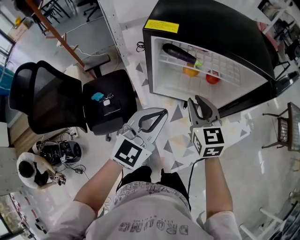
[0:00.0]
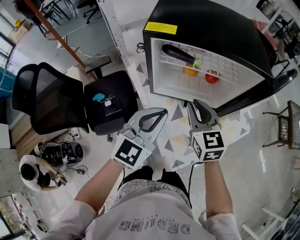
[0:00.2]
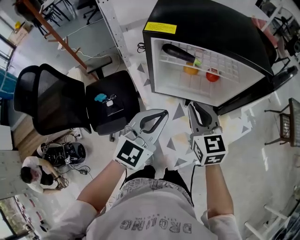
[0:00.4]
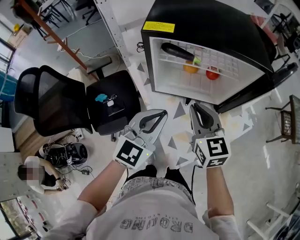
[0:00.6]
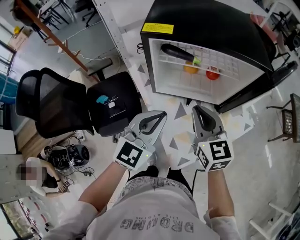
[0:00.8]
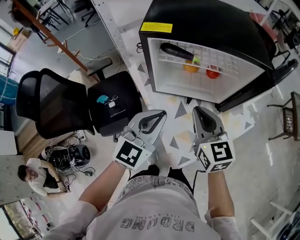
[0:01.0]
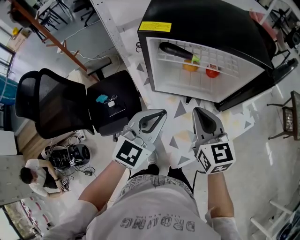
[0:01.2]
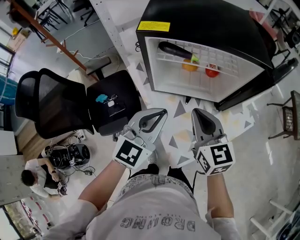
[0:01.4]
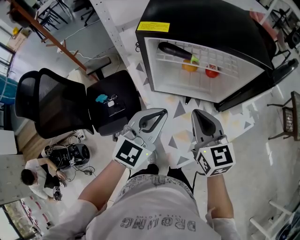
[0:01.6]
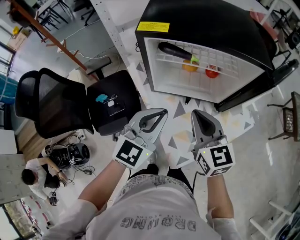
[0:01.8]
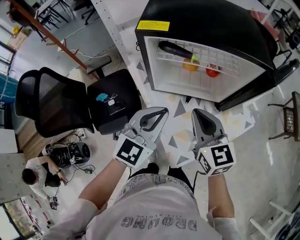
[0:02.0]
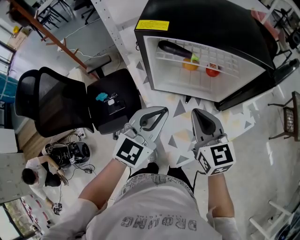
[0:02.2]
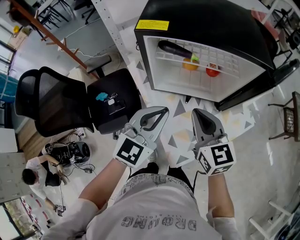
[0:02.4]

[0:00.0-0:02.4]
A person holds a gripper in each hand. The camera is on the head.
0:00.0 to 0:01.2: The right gripper heads backward, covering approximately 5 cm.
0:01.2 to 0:02.4: The two grippers keep their place.

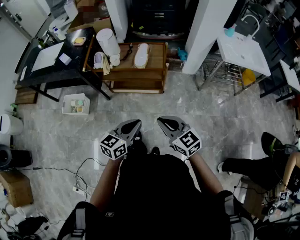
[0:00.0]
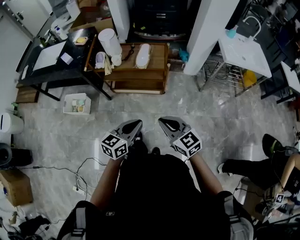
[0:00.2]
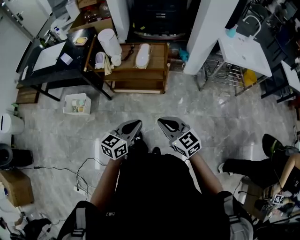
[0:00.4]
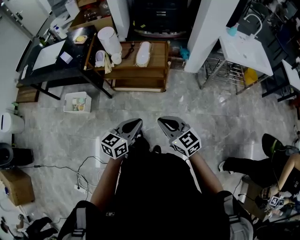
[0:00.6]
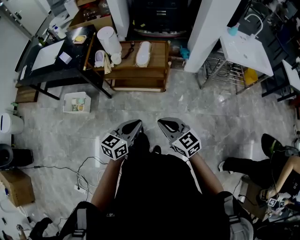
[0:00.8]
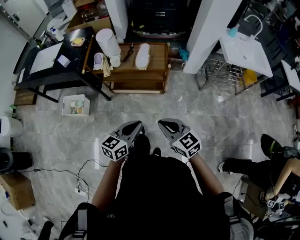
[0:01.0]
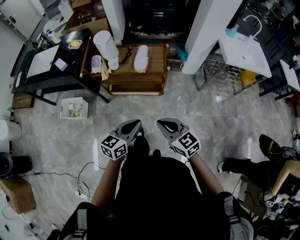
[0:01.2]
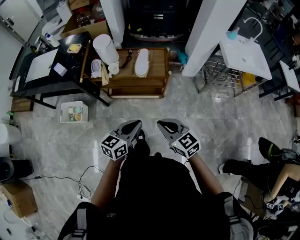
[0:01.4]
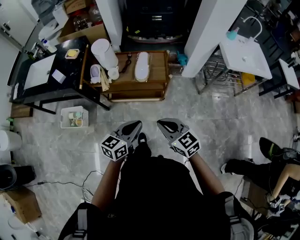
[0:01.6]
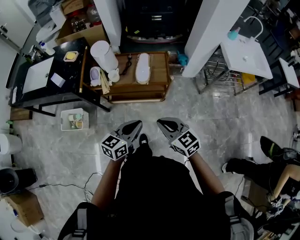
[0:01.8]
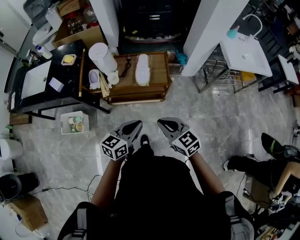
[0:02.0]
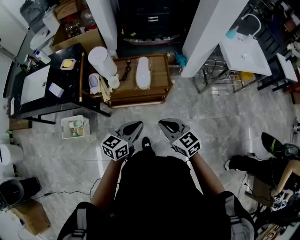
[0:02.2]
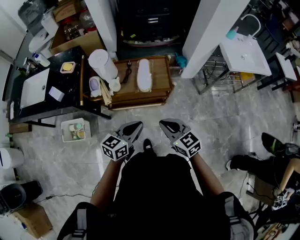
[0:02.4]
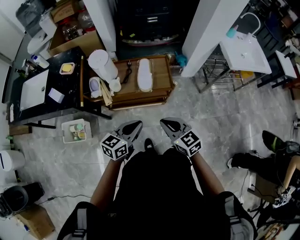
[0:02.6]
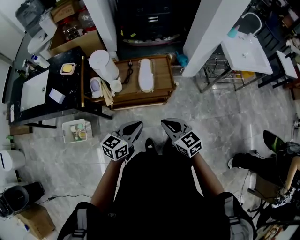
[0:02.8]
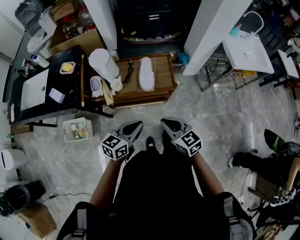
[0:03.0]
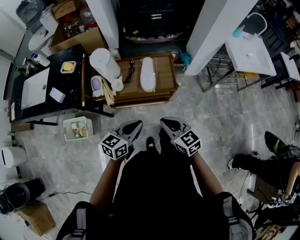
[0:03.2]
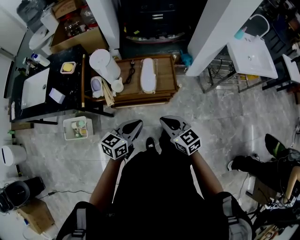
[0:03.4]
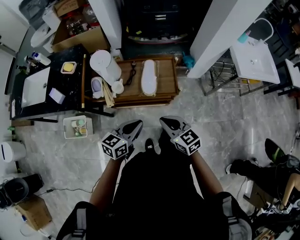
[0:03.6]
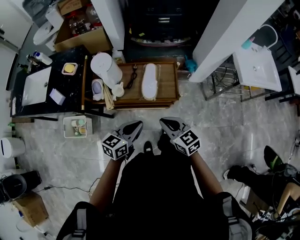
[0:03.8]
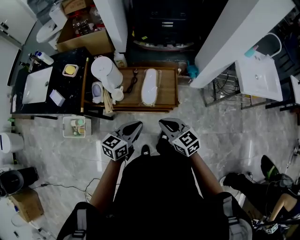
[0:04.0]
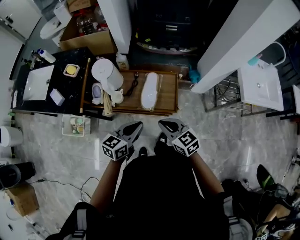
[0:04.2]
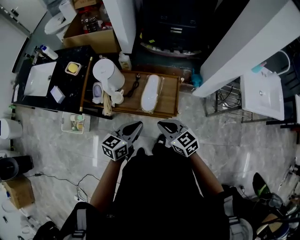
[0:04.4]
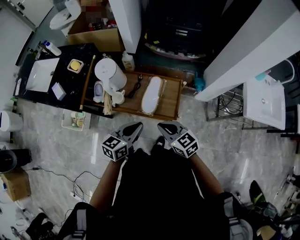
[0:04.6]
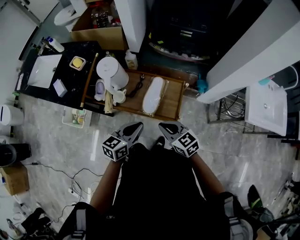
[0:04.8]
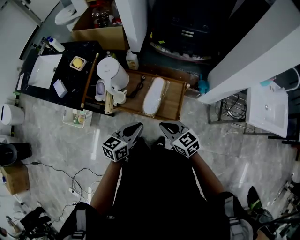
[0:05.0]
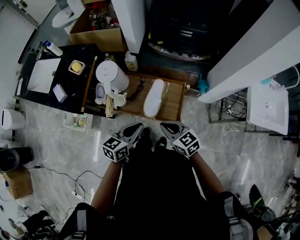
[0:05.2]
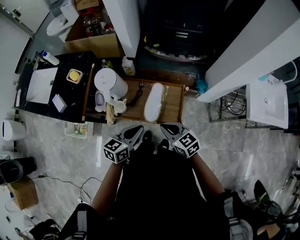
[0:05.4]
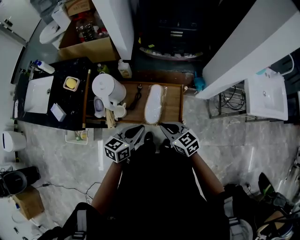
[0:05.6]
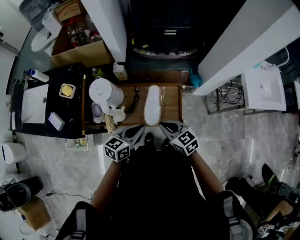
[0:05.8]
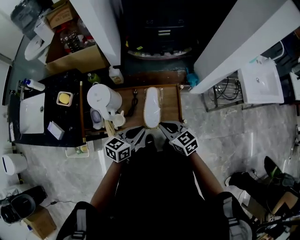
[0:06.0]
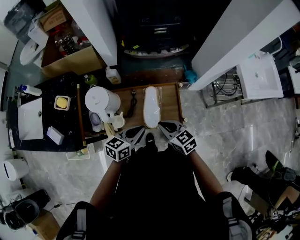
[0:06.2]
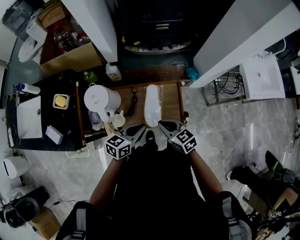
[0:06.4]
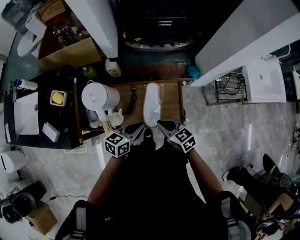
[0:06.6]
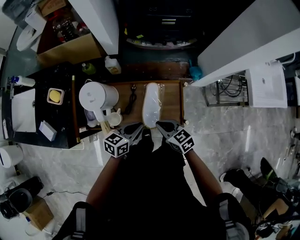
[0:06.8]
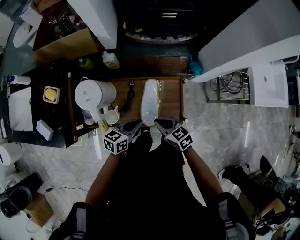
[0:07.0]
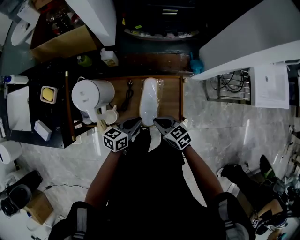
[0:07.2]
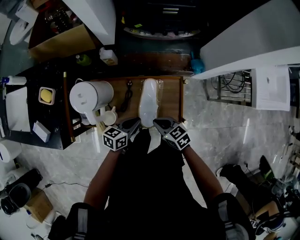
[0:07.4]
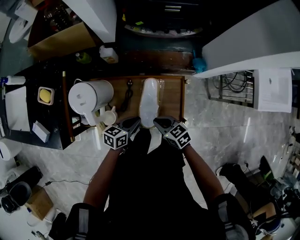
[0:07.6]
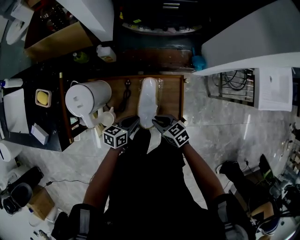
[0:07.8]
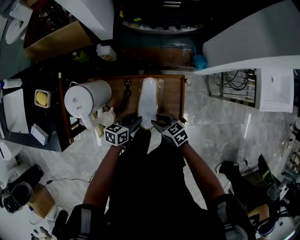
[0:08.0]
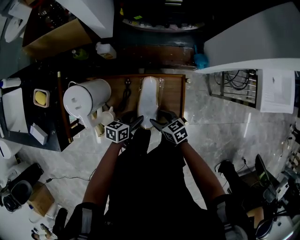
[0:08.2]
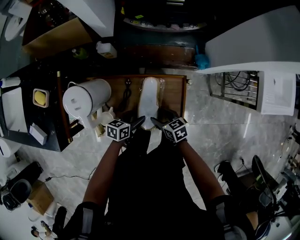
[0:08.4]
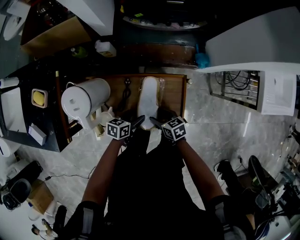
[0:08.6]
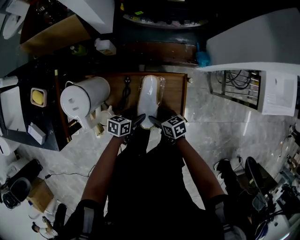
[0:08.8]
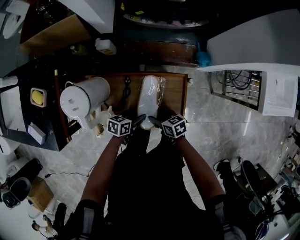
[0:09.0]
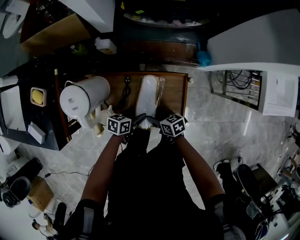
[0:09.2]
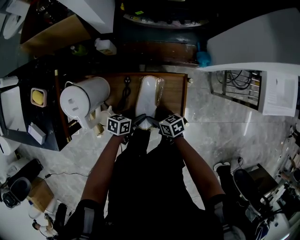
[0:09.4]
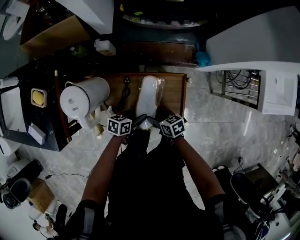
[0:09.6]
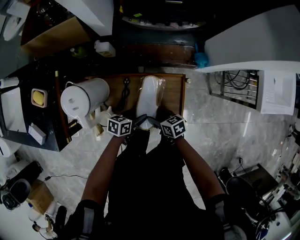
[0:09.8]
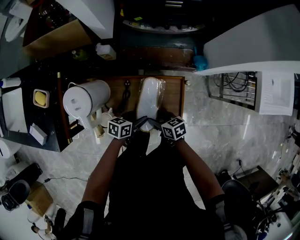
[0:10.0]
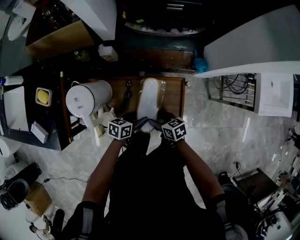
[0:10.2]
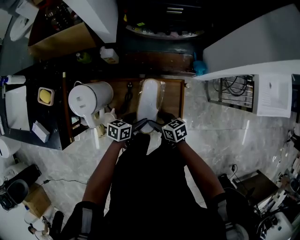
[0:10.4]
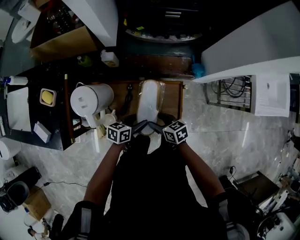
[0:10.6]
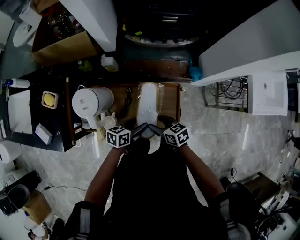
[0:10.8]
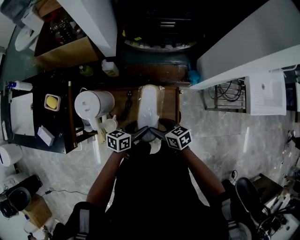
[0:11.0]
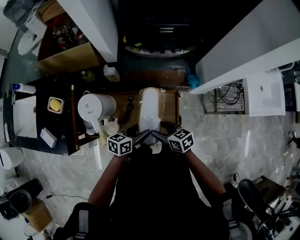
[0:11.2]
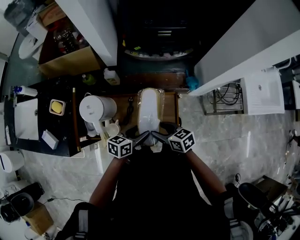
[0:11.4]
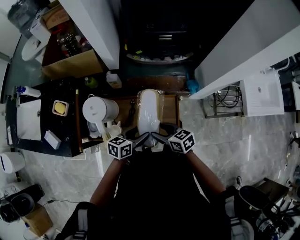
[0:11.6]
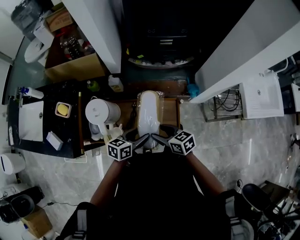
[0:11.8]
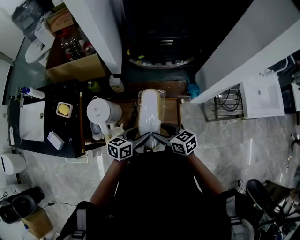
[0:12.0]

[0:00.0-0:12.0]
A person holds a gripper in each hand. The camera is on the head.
0:00.0 to 0:01.6: The two grippers go approximately 15 cm forward.
0:01.6 to 0:03.0: The two grippers go approximately 10 cm forward and to the left.
0:03.0 to 0:04.4: Both grippers move forward, roughly 15 cm.
0:04.4 to 0:06.0: The two grippers go about 10 cm forward.
0:06.0 to 0:07.6: The left gripper shifts roughly 15 cm downward and forward, while the right gripper goes roughly 15 cm downward.
0:07.6 to 0:09.0: Both grippers travel together downward, some 10 cm. The right gripper opens its fingers. Meanwhile the left gripper opens up.
0:09.0 to 0:10.4: The grippers both shift upward by approximately 5 cm.
0:10.4 to 0:12.0: The grippers both shift upward by roughly 15 cm.

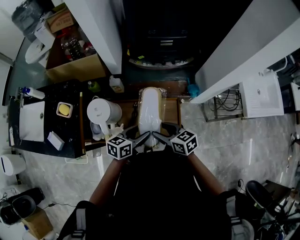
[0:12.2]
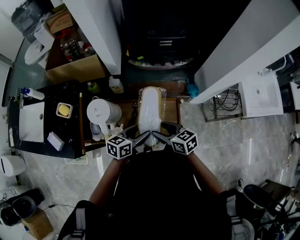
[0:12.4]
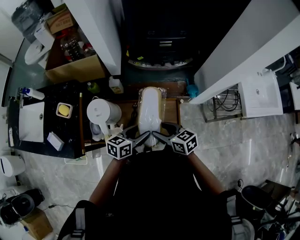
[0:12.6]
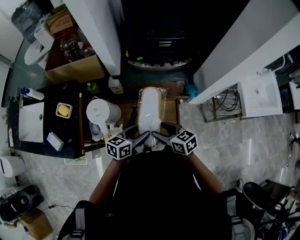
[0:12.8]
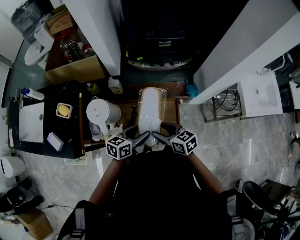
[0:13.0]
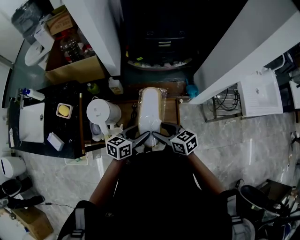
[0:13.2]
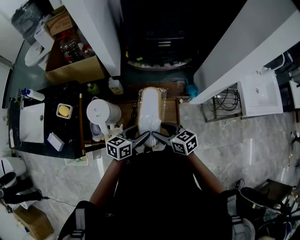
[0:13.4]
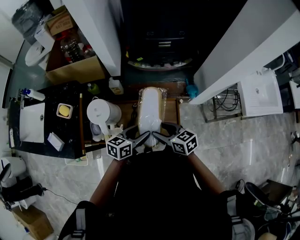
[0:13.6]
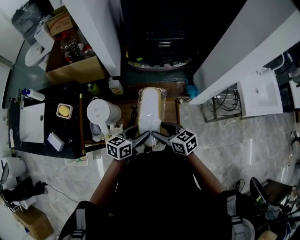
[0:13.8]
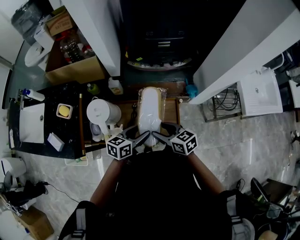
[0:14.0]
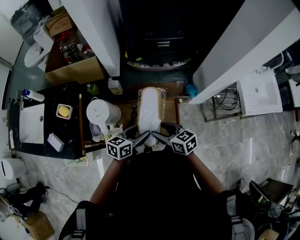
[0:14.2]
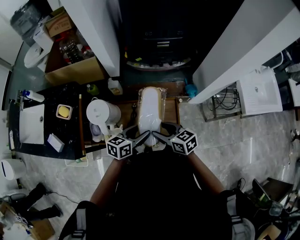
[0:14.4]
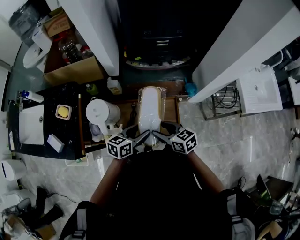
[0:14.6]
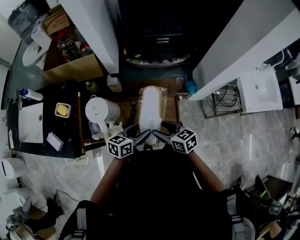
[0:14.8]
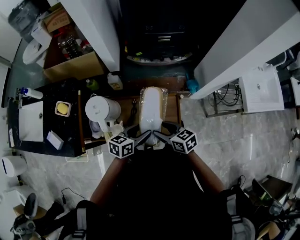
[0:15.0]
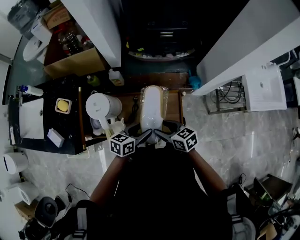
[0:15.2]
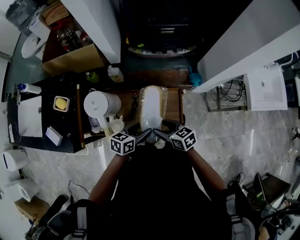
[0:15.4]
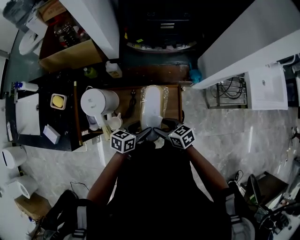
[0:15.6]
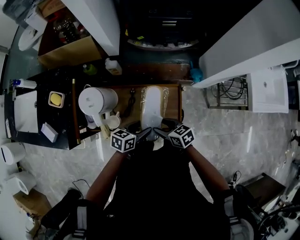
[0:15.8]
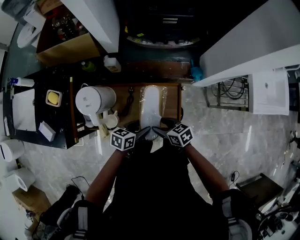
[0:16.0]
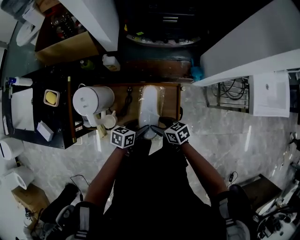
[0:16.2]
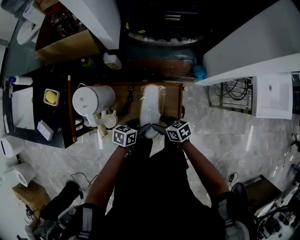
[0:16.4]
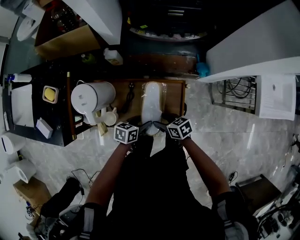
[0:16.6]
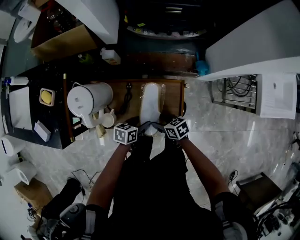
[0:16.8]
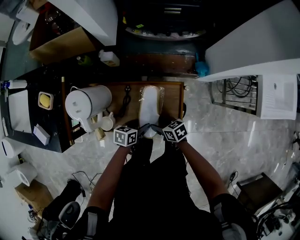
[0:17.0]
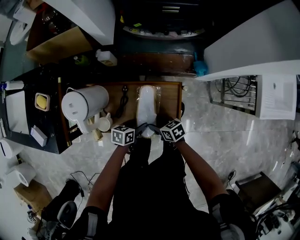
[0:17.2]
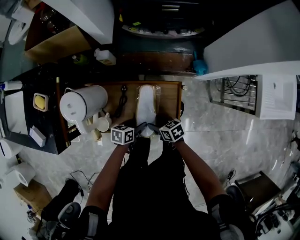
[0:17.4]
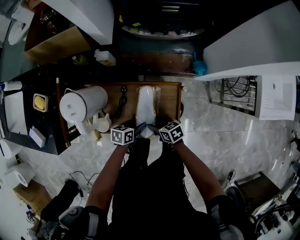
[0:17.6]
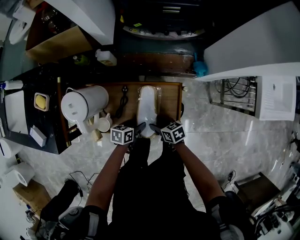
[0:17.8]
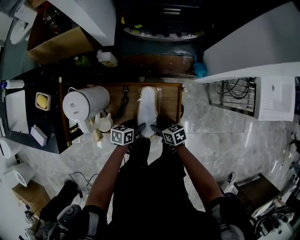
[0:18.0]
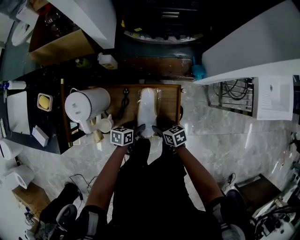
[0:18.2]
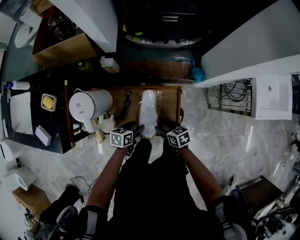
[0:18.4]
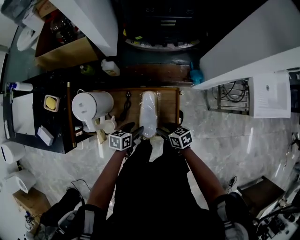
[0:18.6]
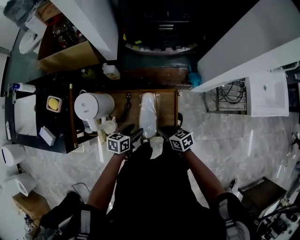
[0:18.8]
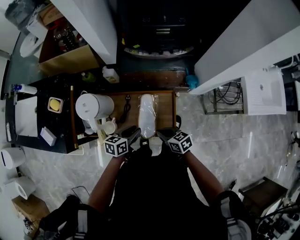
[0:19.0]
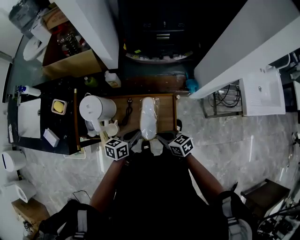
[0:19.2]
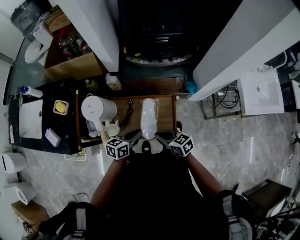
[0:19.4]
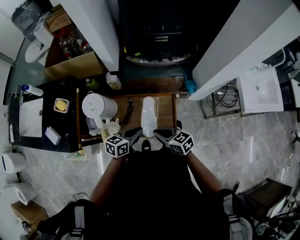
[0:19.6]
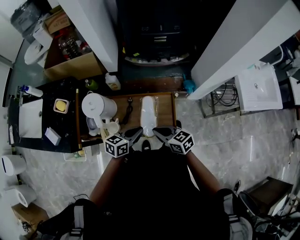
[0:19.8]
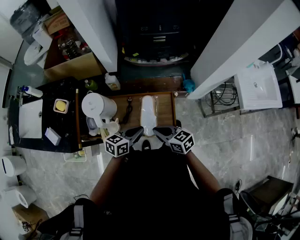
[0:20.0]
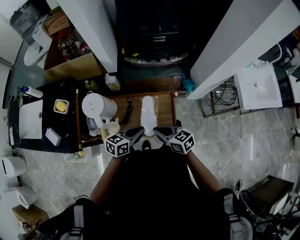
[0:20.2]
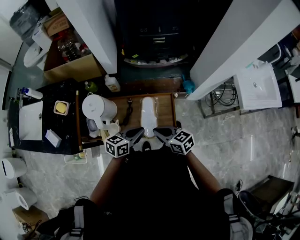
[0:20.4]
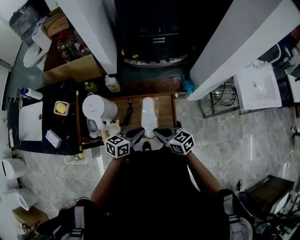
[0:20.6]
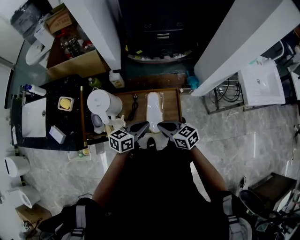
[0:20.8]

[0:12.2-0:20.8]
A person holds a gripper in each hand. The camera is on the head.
0:12.2 to 0:13.6: Both grippers stay about where they are.
0:13.6 to 0:15.0: The grippers move only a little.
0:15.0 to 0:16.6: Both grippers move downward, roughly 15 cm.
0:16.6 to 0:18.0: The two grippers go approximately 5 cm downward.
0:18.0 to 0:19.4: Both grippers move upward, roughly 15 cm. The left gripper rotates some 20 degrees, and closes; the right gripper rotates about 20 degrees, and closes.
0:19.4 to 0:20.8: The grippers move only a little.

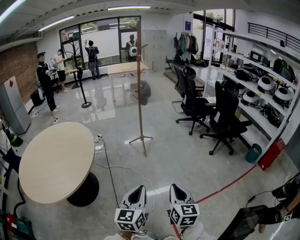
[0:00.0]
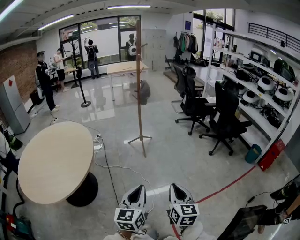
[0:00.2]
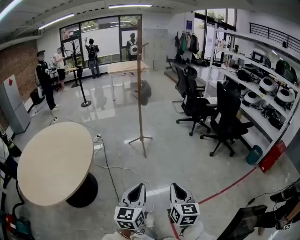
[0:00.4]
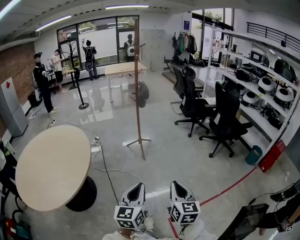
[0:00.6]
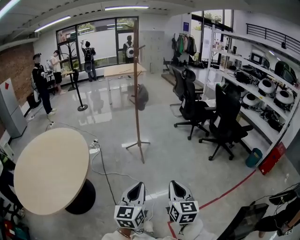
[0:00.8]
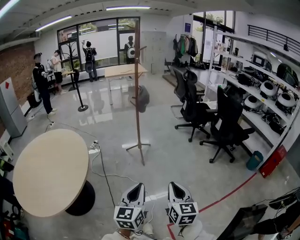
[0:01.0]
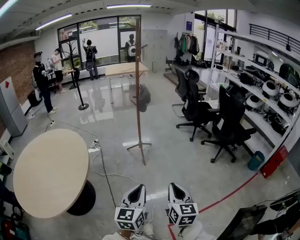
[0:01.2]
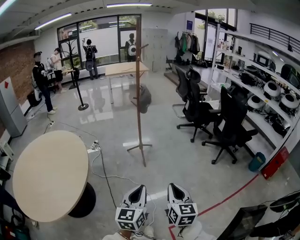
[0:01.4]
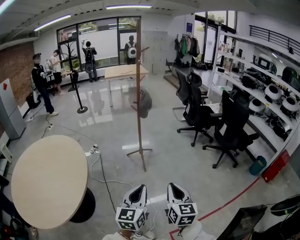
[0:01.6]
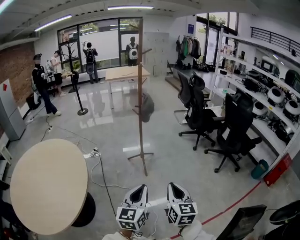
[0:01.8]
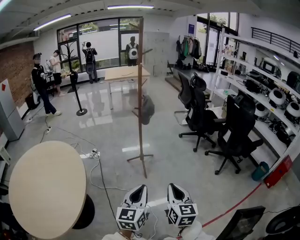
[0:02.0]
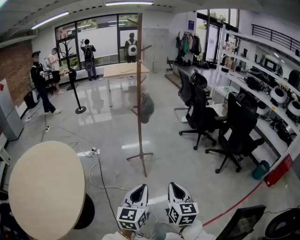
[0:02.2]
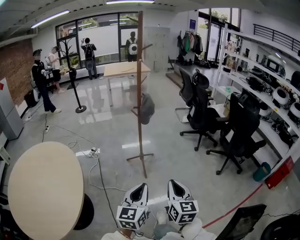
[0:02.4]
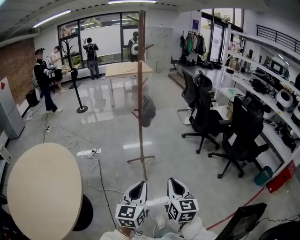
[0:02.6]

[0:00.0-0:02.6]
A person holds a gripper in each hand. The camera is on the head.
0:00.0 to 0:01.2: Both grippers travel together forward, about 15 cm.
0:01.2 to 0:02.6: Both grippers move forward, roughly 25 cm.
